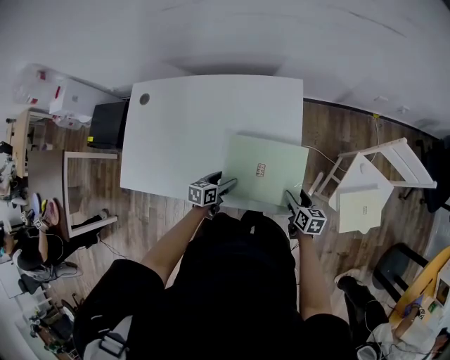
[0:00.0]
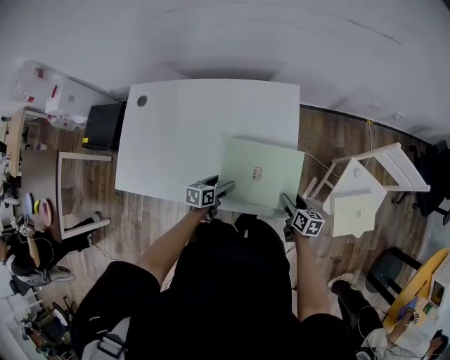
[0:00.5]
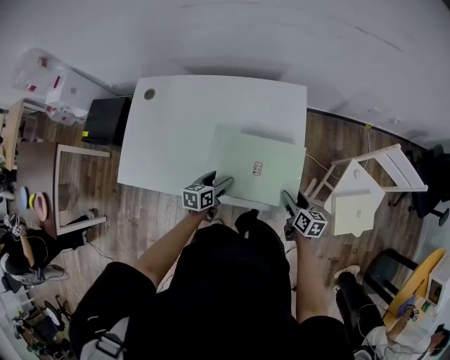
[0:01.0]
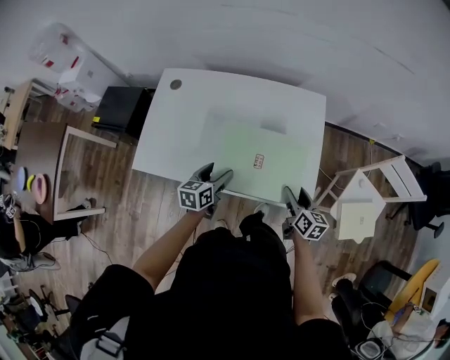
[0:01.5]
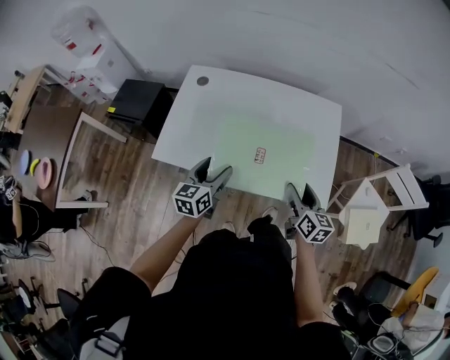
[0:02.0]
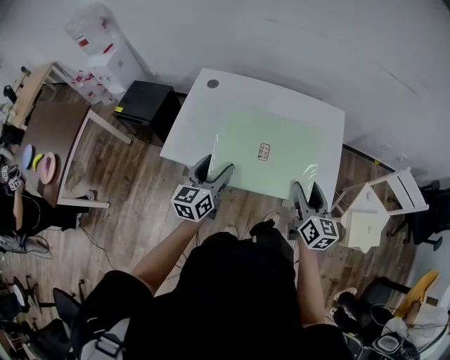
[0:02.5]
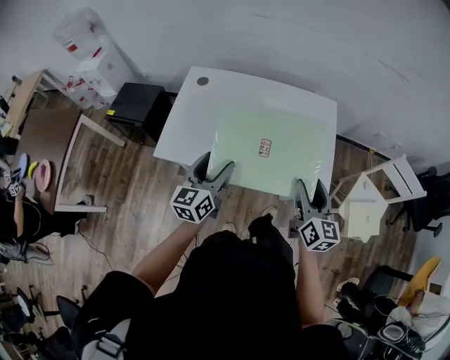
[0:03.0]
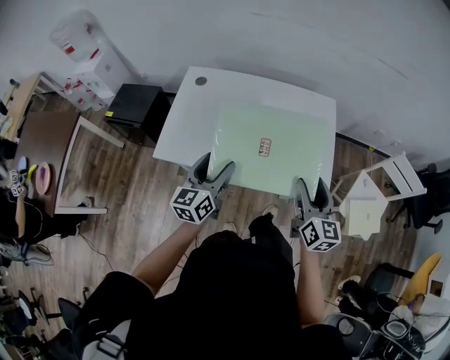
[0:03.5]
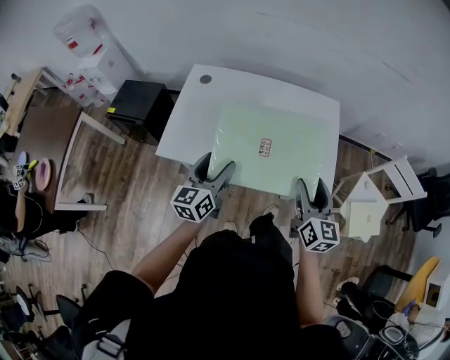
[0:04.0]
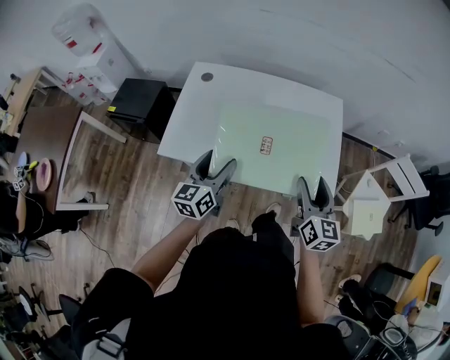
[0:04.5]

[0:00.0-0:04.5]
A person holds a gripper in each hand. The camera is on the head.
0:00.0 to 0:02.0: The left gripper moves upward, to the left and backward, roughly 35 cm, and changes its angle by about 40 degrees, while the right gripper travels to the left and upward by about 30 cm, and changes its angle by approximately 20 degrees.
0:02.0 to 0:04.5: The left gripper heads upward, covering about 5 cm; the right gripper shifts about 10 cm upward.

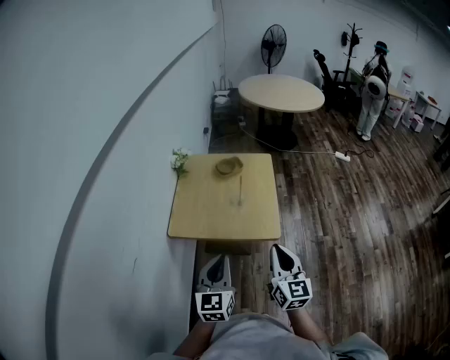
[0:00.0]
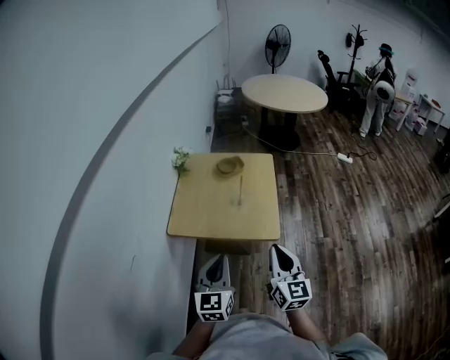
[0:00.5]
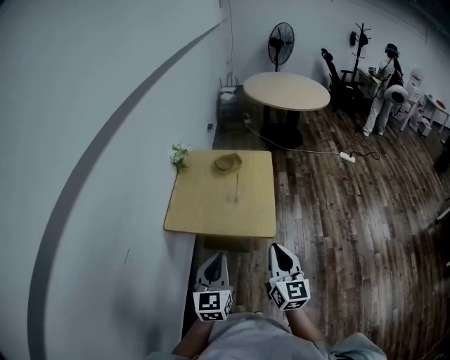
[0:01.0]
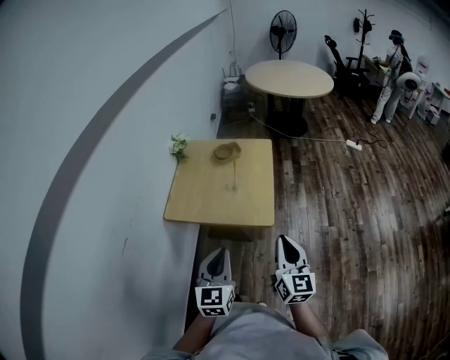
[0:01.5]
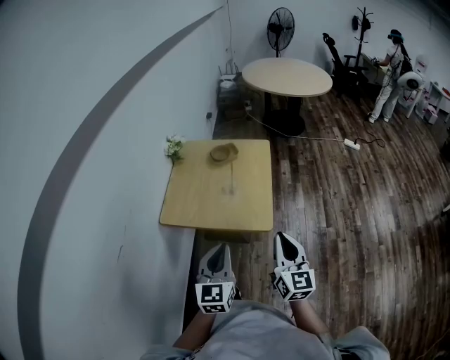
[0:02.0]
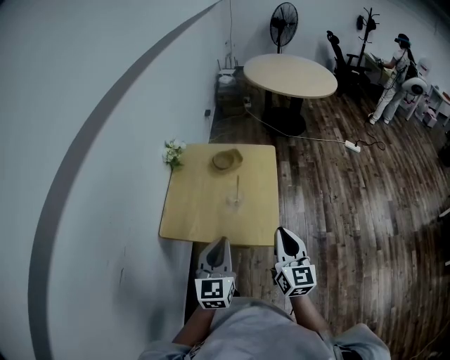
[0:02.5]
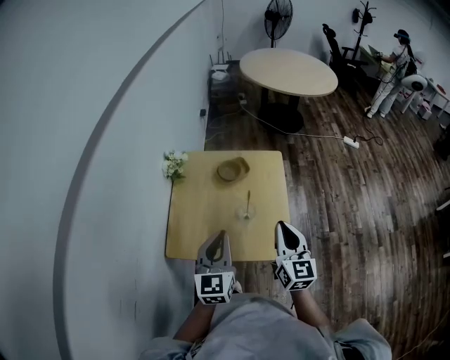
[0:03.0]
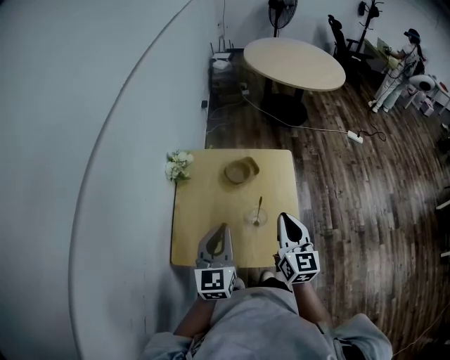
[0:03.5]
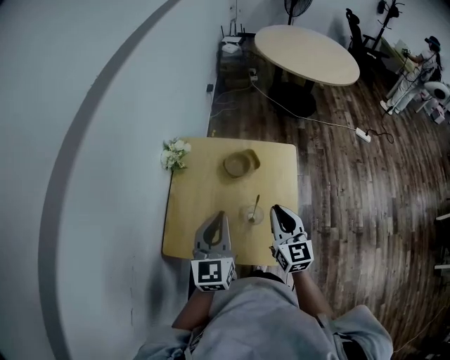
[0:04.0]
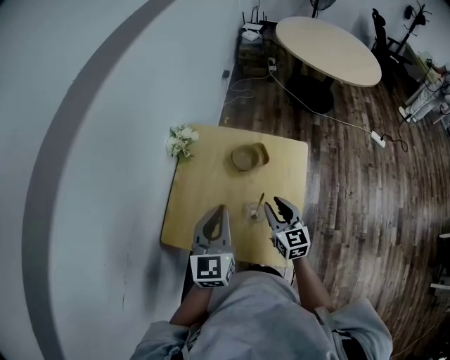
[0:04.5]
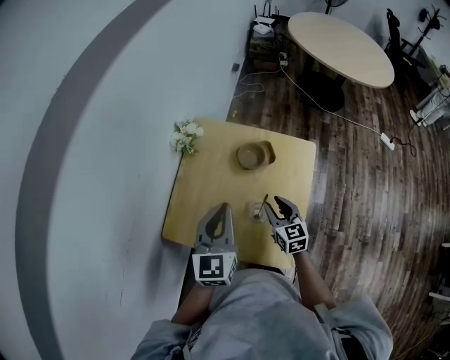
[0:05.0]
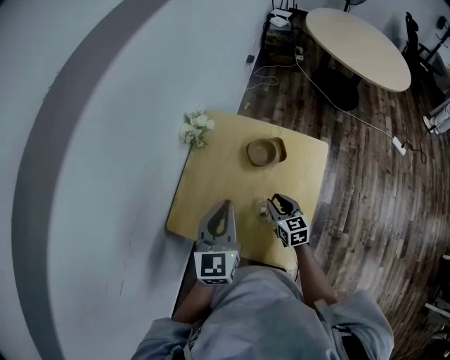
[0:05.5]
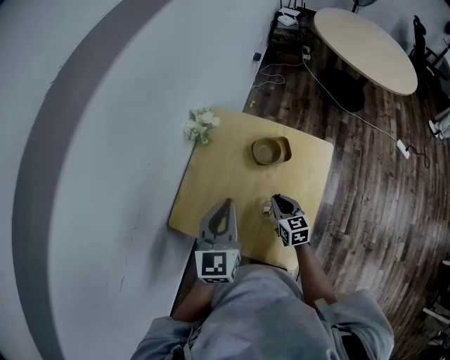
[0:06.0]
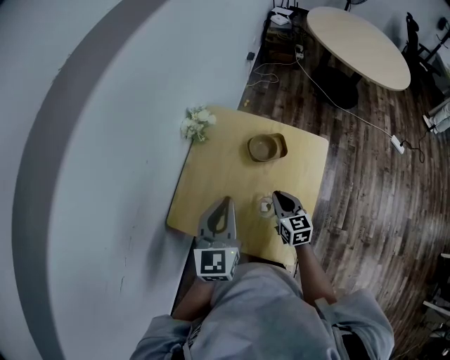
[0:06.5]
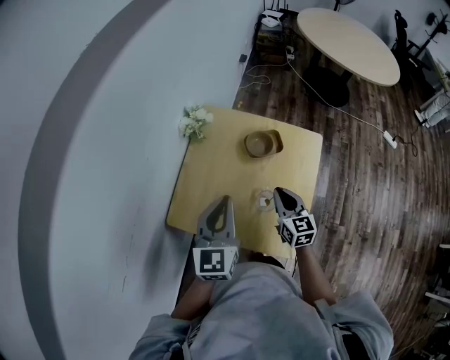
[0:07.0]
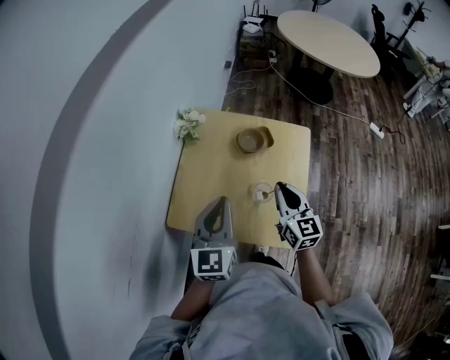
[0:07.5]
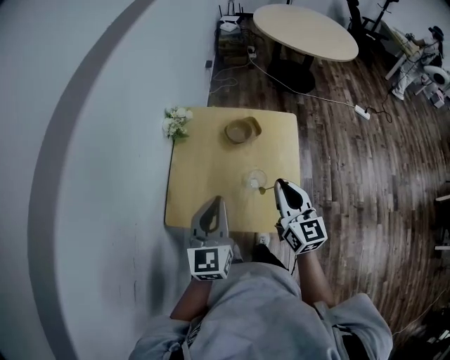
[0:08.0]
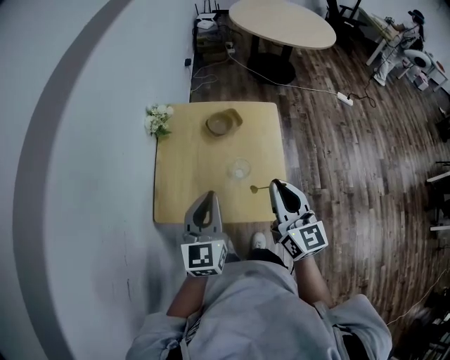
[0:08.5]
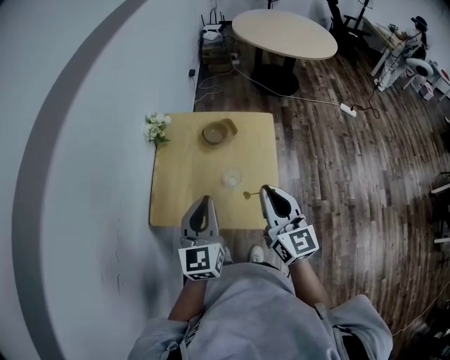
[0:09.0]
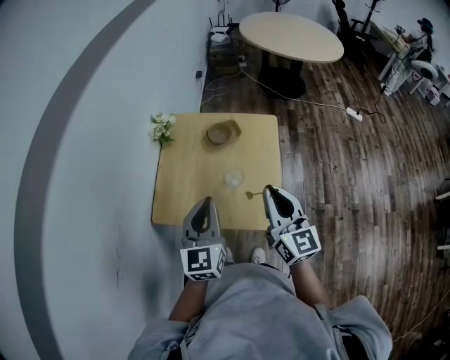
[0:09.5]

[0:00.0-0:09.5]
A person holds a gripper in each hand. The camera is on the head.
0:00.0 to 0:02.0: Both grippers travel together to the right, roughly 10 cm.
0:02.0 to 0:04.0: The two grippers go approximately 35 cm forward.
0:04.0 to 0:05.5: The right gripper heads downward, covering approximately 20 cm, swivels about 30 degrees, and opens up.
0:05.5 to 0:07.5: The right gripper heads upward, covering about 15 cm, swivels some 20 degrees, and closes up, while the left gripper goes some 5 cm backward.
0:07.5 to 0:09.5: The left gripper travels backward and to the right by about 10 cm. Meanwhile the right gripper moves backward and upward, about 15 cm.

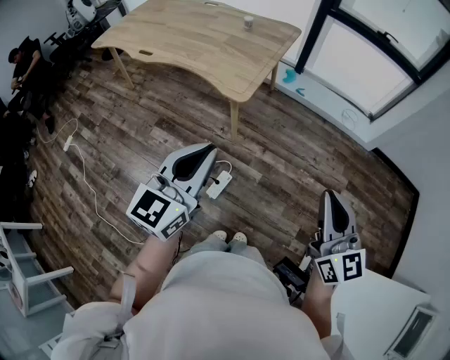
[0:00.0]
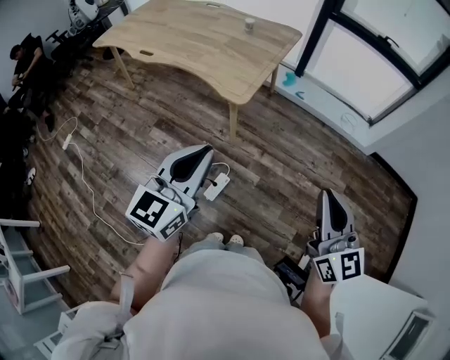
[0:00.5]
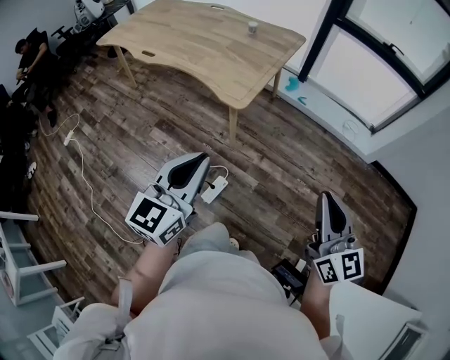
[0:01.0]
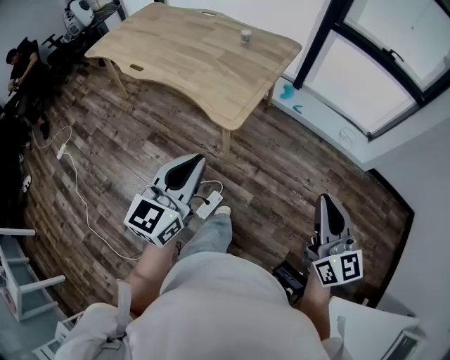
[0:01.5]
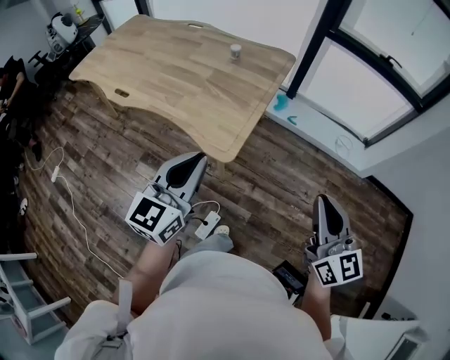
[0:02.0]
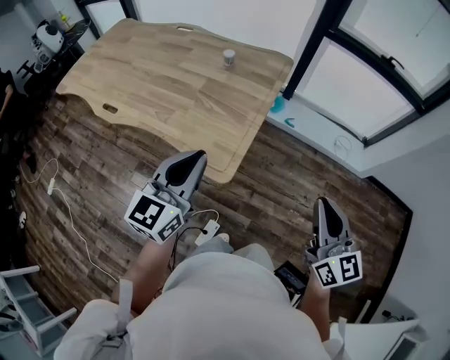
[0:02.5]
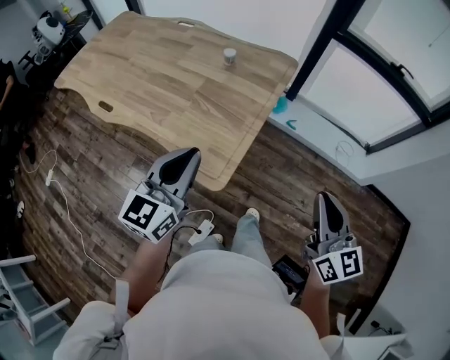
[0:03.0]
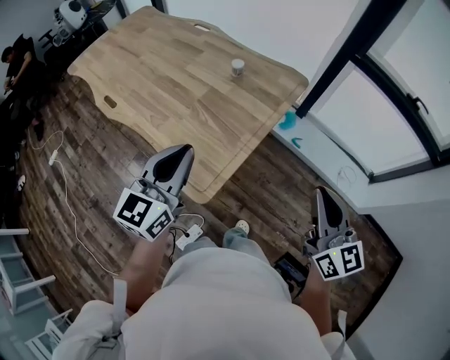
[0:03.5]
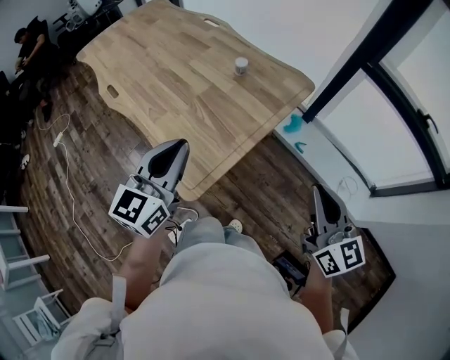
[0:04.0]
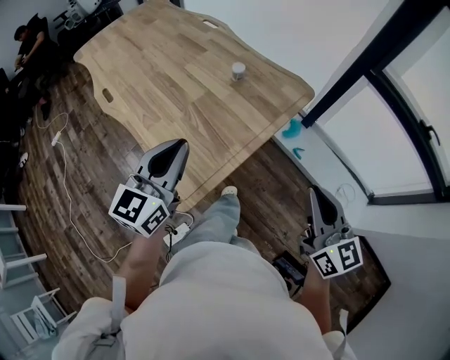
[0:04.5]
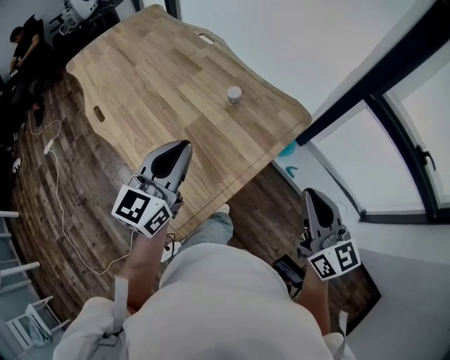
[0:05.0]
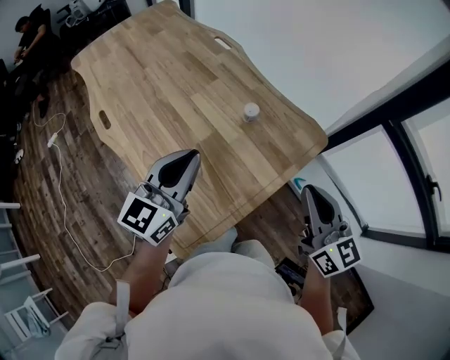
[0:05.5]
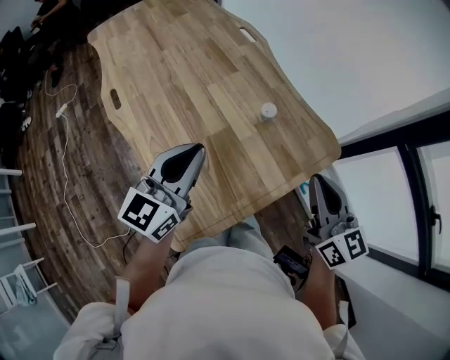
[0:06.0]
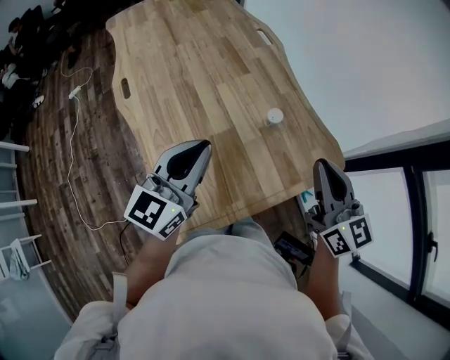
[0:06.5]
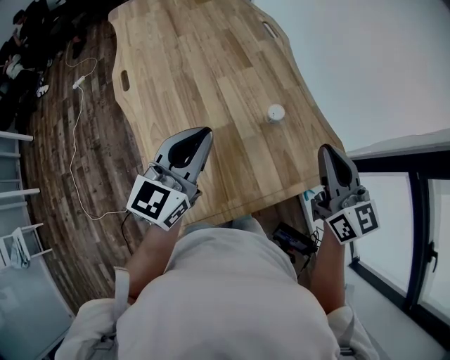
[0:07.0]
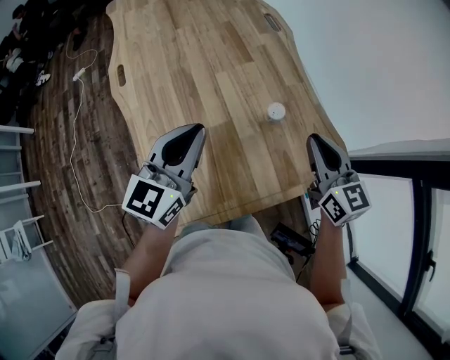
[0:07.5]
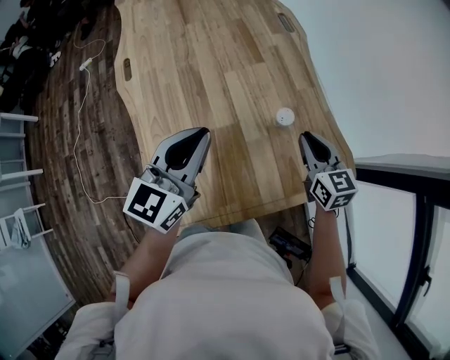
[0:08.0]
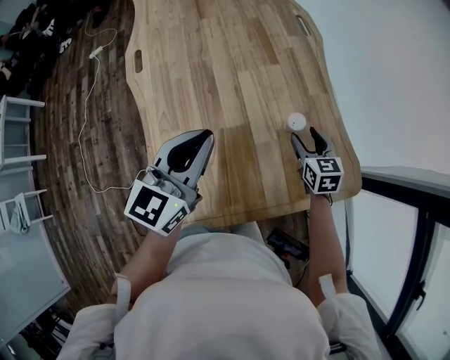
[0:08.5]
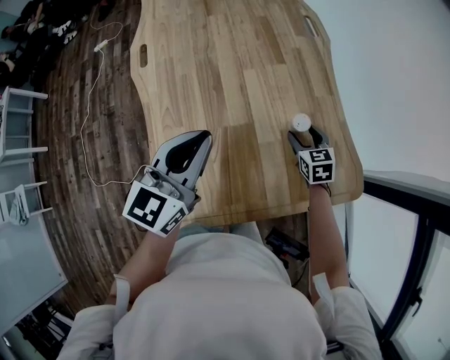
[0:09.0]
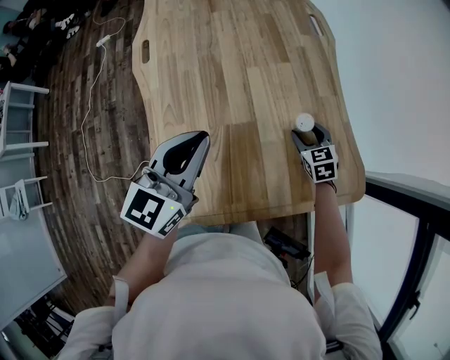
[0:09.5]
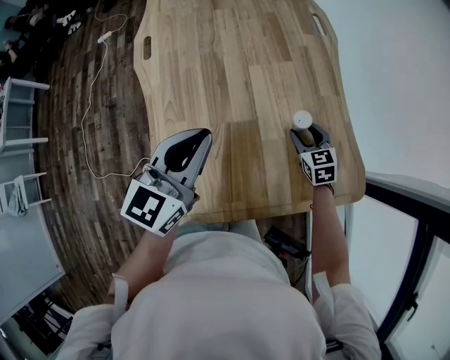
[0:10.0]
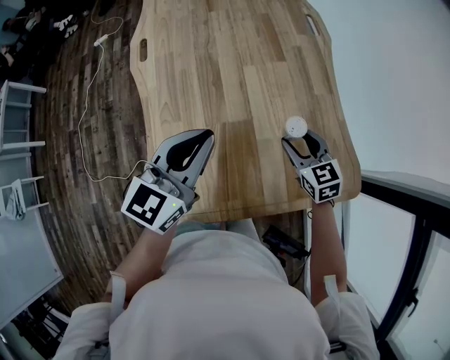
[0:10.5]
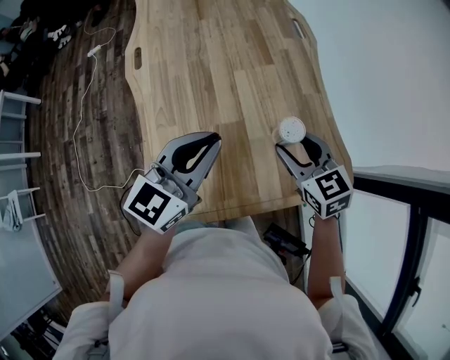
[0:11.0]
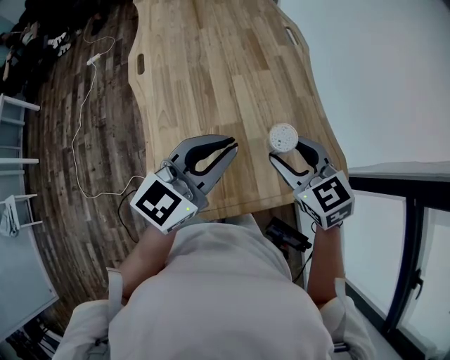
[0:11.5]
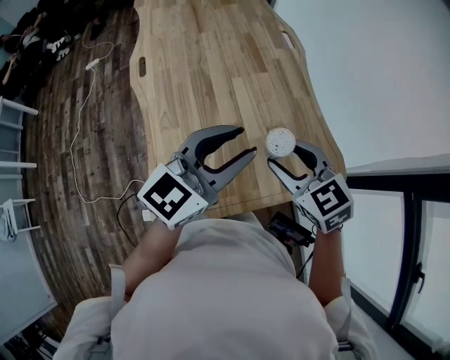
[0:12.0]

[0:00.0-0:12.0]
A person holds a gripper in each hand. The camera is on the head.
0:00.0 to 0:02.0: The grippers both shift forward by roughly 25 cm.
0:02.0 to 0:04.0: The grippers both shift forward by about 25 cm. The right gripper rotates some 20 degrees.
0:04.0 to 0:06.0: Both grippers move forward, about 25 cm.
0:06.0 to 0:08.0: The right gripper is displaced forward and downward by some 25 cm, and changes its angle by roughly 20 degrees. Meanwhile the left gripper heads forward, covering approximately 5 cm.
0:08.0 to 0:10.0: The right gripper shifts about 15 cm downward, swivels some 20 degrees, and opens.
0:10.0 to 0:12.0: The right gripper moves upward and backward, approximately 30 cm, while the left gripper goes approximately 15 cm to the right, upward and backward, turns by about 20 degrees, and opens up.

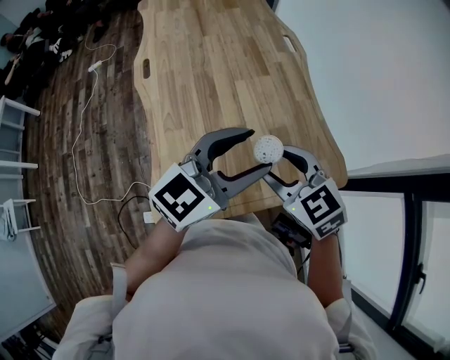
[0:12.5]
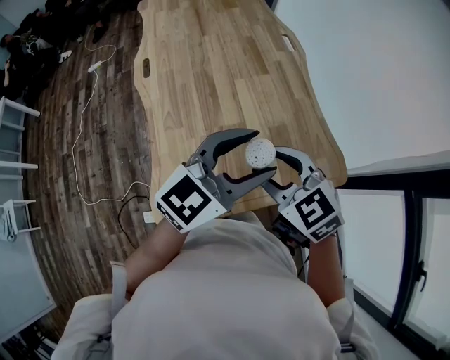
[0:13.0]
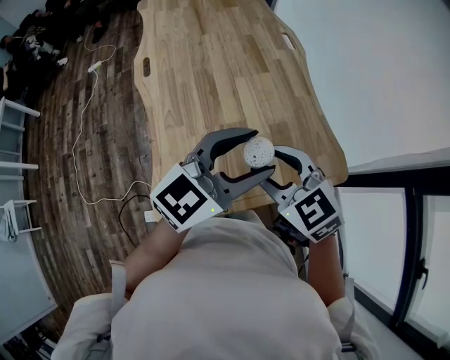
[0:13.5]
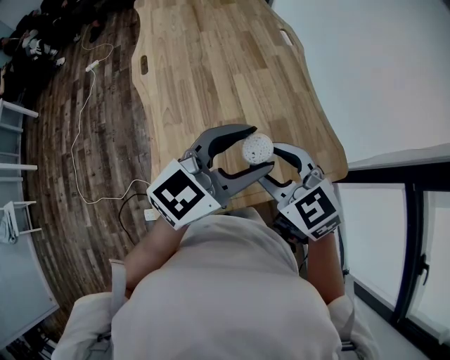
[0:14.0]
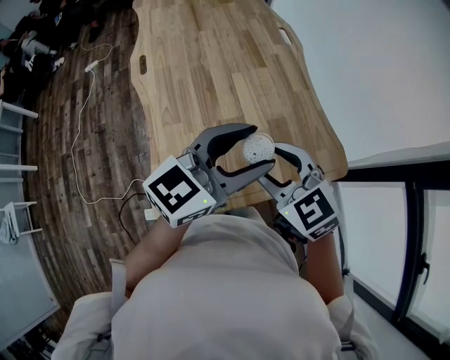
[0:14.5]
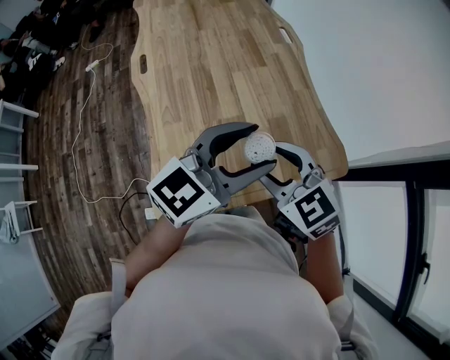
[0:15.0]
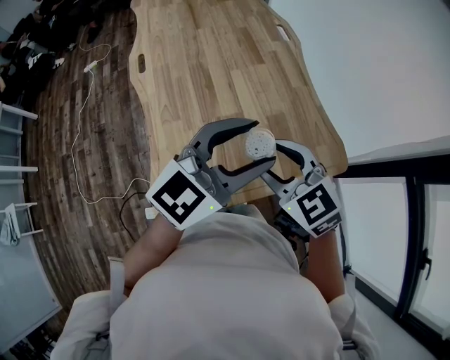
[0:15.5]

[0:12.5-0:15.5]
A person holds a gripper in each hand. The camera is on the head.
0:12.5 to 0:15.5: The grippers move only a little.
